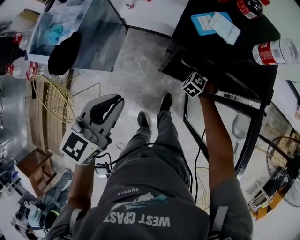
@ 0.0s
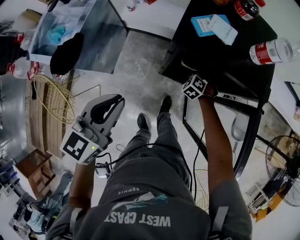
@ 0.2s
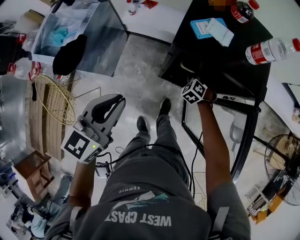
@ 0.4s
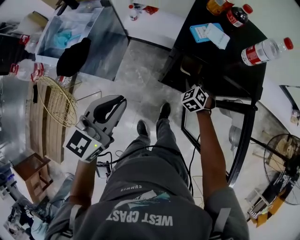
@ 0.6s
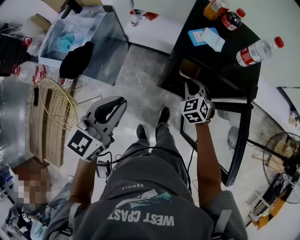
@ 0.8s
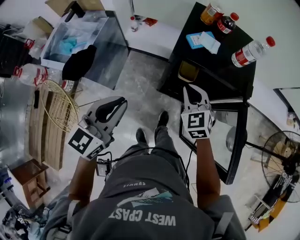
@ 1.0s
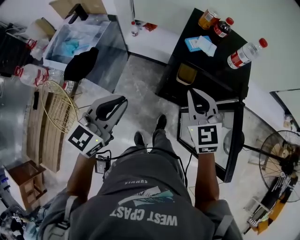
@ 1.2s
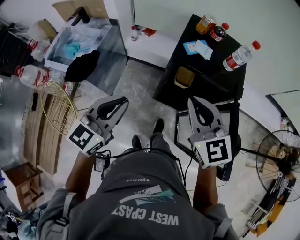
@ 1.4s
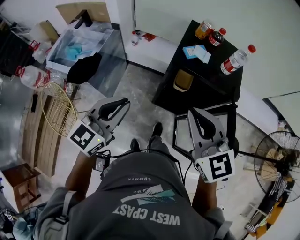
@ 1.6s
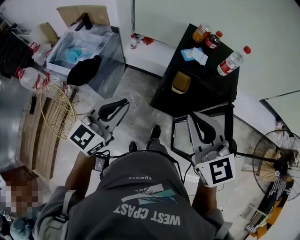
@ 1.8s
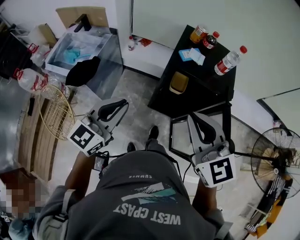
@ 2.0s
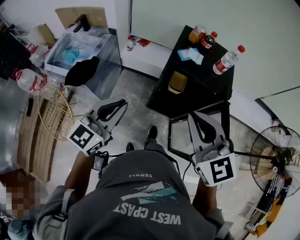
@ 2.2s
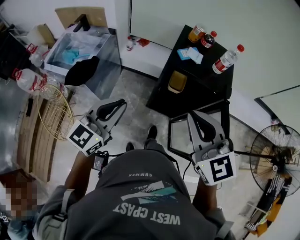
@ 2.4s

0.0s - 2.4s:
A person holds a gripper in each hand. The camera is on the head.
0.0s - 1.2s: The right gripper moves upward, roughly 40 cm, and tilts its fingers some 40 degrees upward. Meanwhile the left gripper goes about 10 cm upward.
1.2s - 2.4s: The right gripper travels upward and backward by approximately 20 cm, while the left gripper changes place by approximately 5 cm.

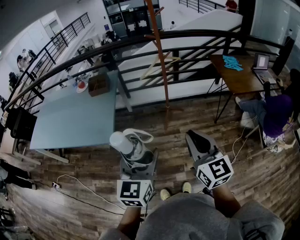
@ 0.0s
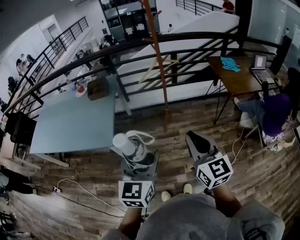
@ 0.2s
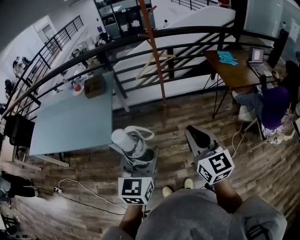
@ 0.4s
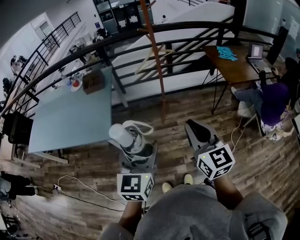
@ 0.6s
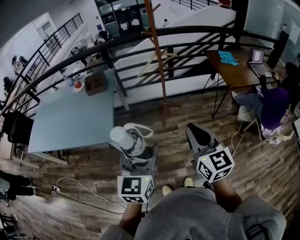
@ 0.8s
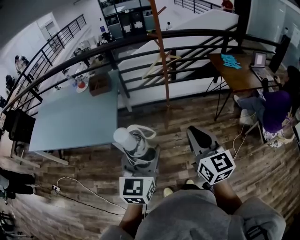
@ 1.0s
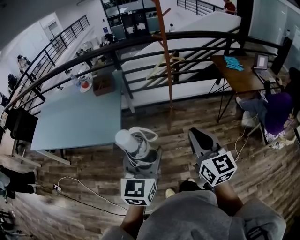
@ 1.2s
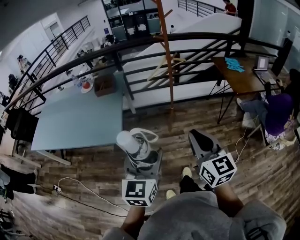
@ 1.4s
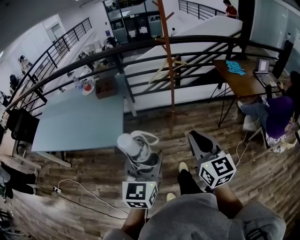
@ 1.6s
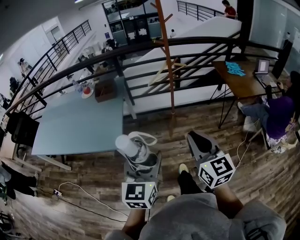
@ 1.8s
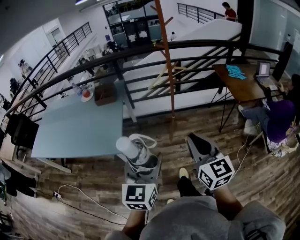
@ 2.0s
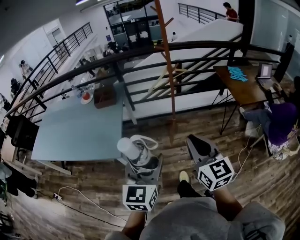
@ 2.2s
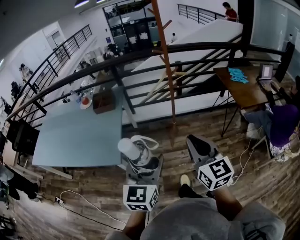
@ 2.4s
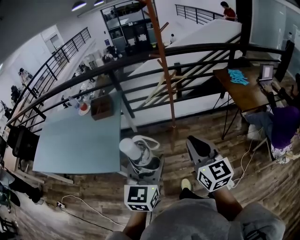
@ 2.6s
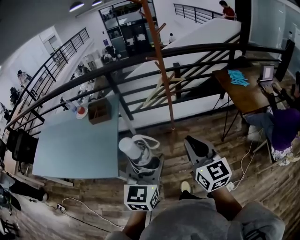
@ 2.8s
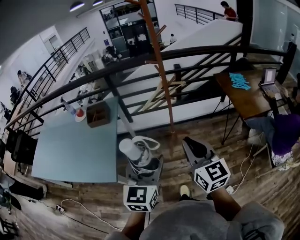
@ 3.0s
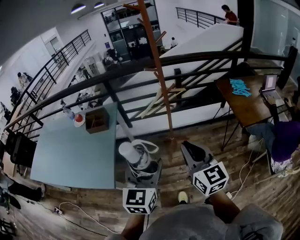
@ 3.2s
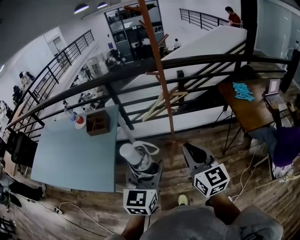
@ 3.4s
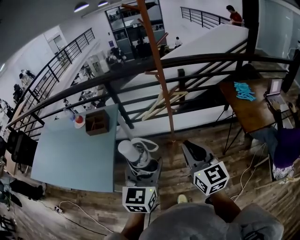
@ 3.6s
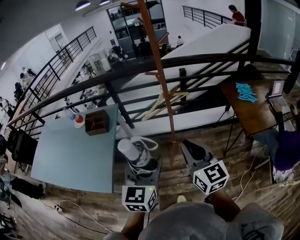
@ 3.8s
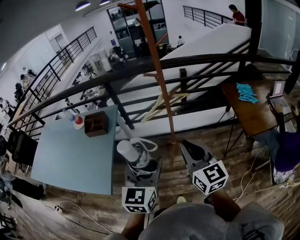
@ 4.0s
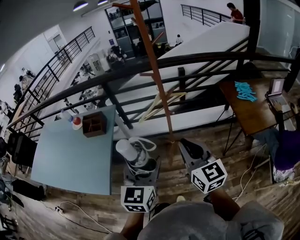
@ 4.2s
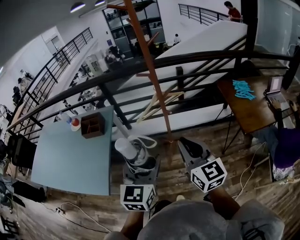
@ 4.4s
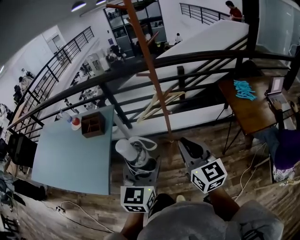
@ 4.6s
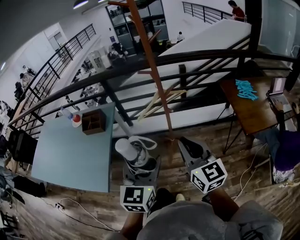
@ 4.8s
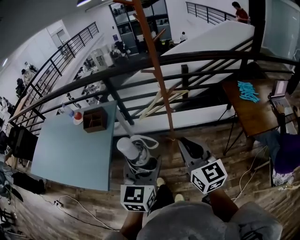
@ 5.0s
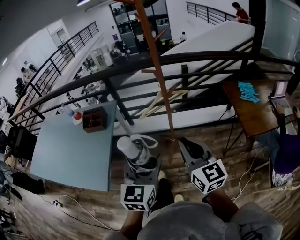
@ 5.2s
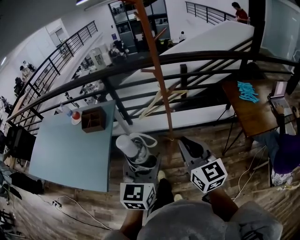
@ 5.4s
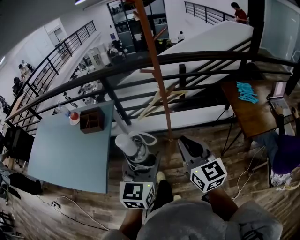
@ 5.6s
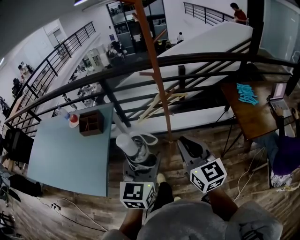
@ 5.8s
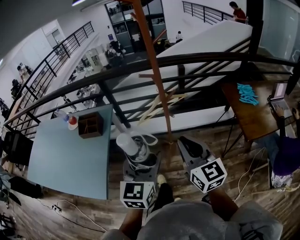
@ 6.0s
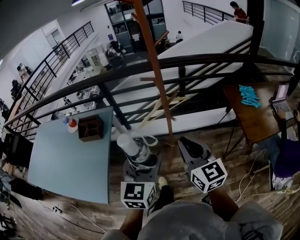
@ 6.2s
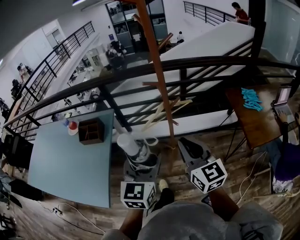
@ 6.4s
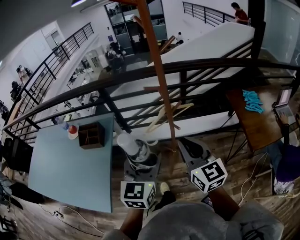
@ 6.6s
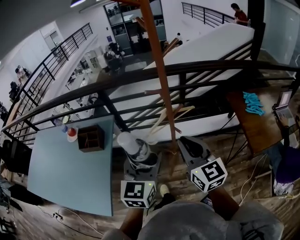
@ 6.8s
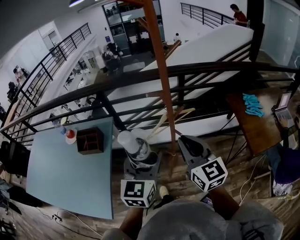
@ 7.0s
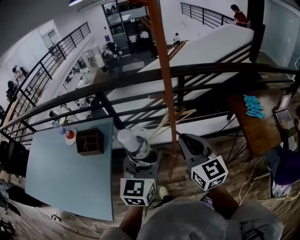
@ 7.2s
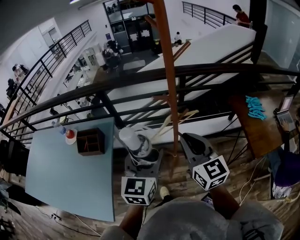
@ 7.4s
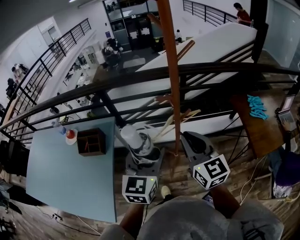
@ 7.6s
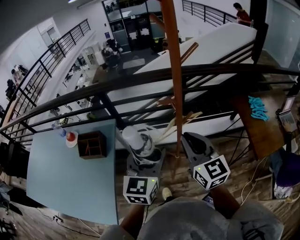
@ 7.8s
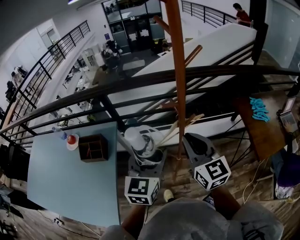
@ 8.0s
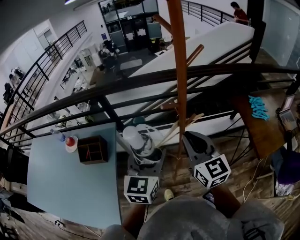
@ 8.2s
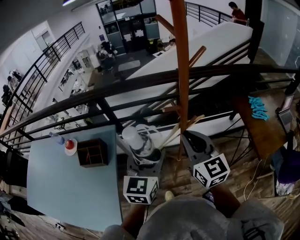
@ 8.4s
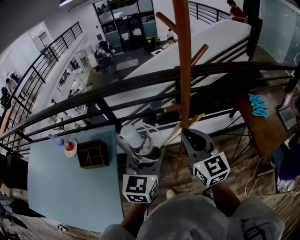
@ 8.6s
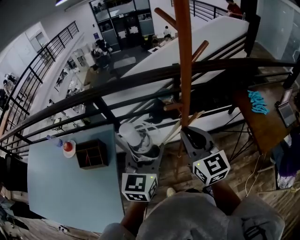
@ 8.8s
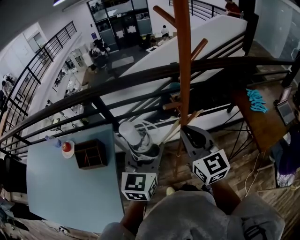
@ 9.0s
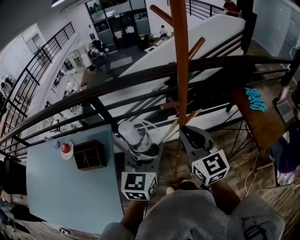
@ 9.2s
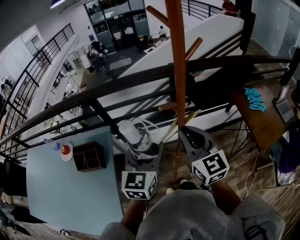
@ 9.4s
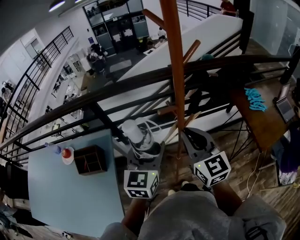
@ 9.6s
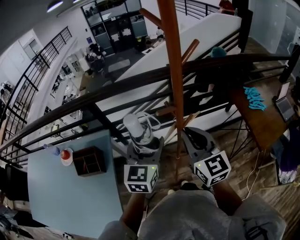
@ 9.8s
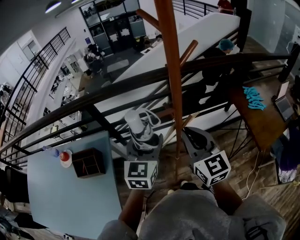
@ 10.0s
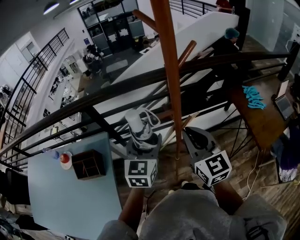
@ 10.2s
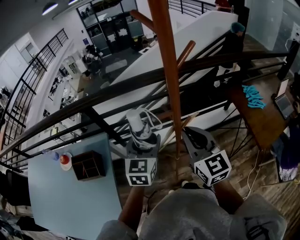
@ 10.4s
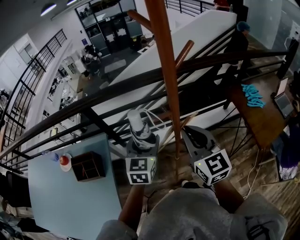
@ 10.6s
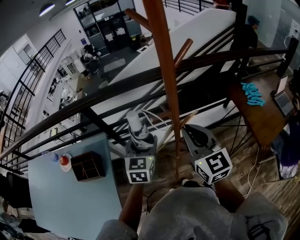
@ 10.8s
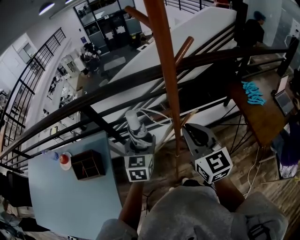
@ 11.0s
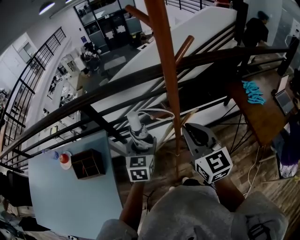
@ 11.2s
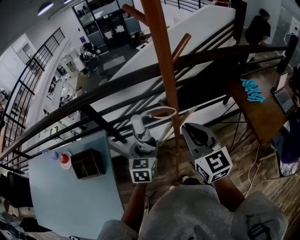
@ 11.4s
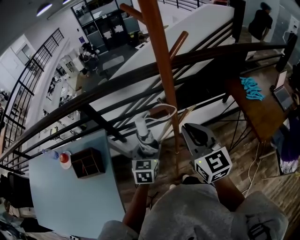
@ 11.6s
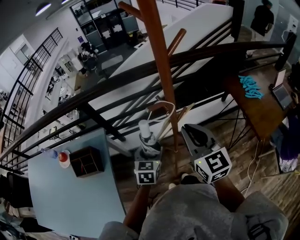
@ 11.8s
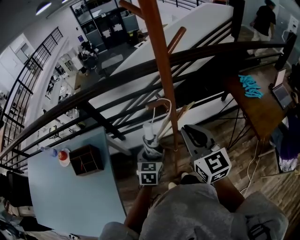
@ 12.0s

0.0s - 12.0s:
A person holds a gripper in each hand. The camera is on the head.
0.0s - 1.6s: The grippers both shift to the left by about 5 cm.
1.6s - 3.0s: Both grippers travel together forward, roughly 20 cm.
3.0s - 4.4s: The two grippers go about 15 cm forward and to the right.
4.4s - 6.0s: Both grippers travel together forward, about 5 cm.
6.0s - 7.6s: Both grippers travel together forward, approximately 20 cm.
7.6s - 9.0s: Both grippers move forward, approximately 10 cm.
9.0s - 10.4s: The right gripper shifts by some 5 cm. The left gripper moves forward, approximately 10 cm.
10.4s - 12.0s: The left gripper is displaced downward by about 15 cm.

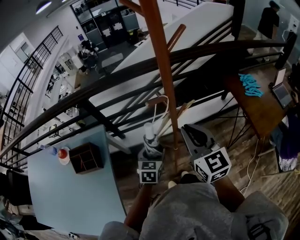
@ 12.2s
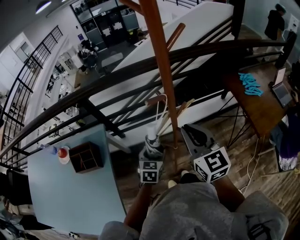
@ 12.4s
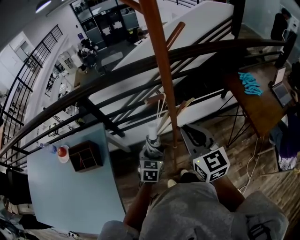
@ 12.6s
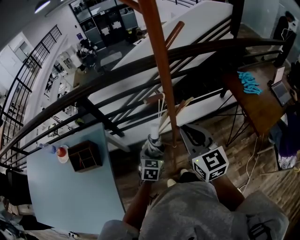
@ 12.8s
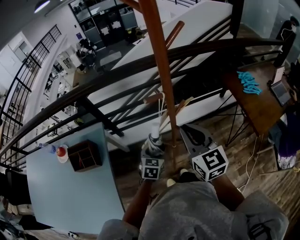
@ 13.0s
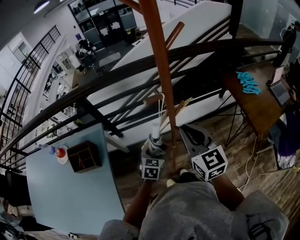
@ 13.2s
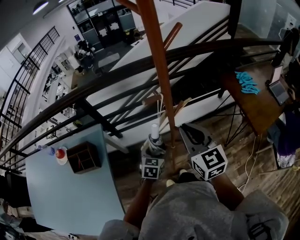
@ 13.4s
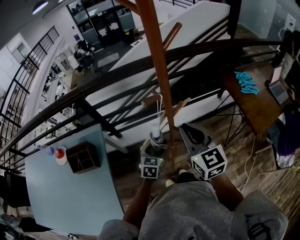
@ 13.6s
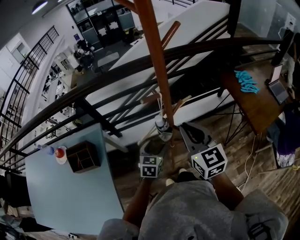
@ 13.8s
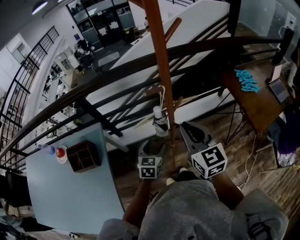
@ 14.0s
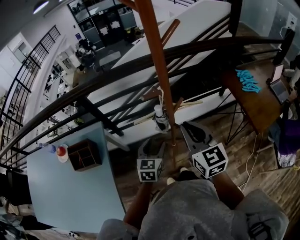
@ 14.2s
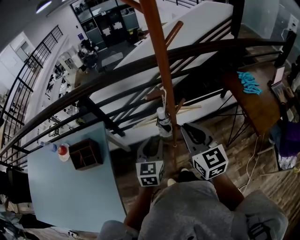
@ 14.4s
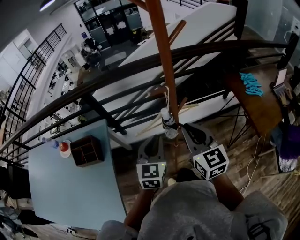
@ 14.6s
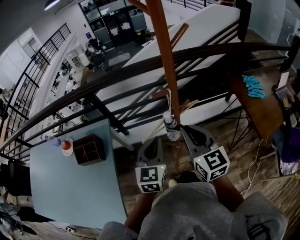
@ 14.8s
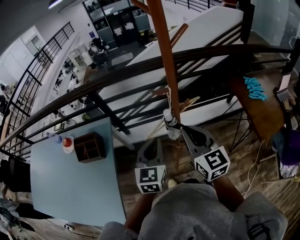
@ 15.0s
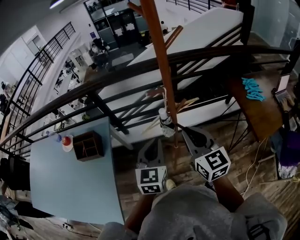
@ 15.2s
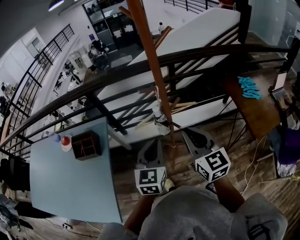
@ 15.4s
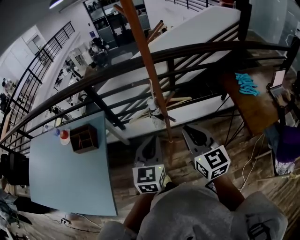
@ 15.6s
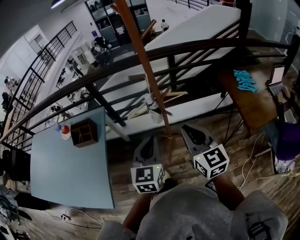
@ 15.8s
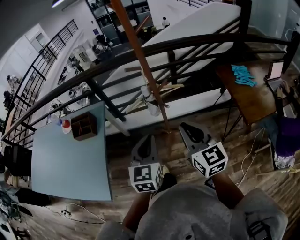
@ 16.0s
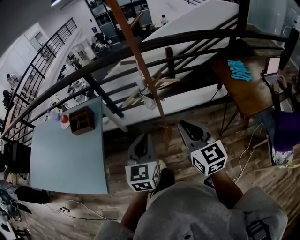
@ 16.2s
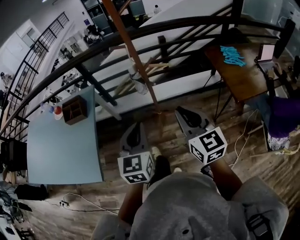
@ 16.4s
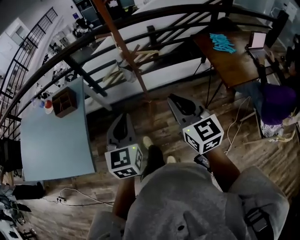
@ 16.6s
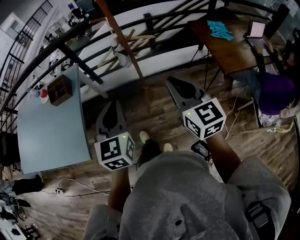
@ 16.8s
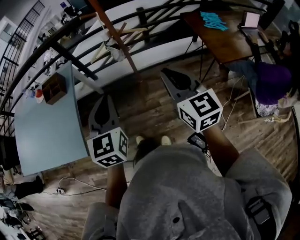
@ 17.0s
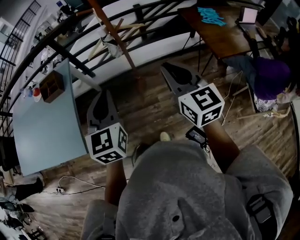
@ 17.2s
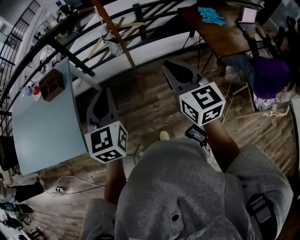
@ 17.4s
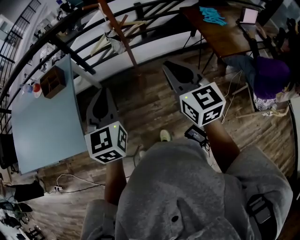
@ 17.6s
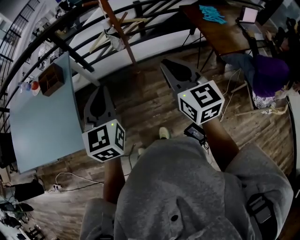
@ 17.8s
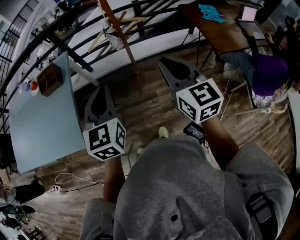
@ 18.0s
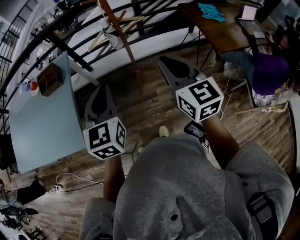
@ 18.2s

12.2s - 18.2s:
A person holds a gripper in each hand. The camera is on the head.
12.2s - 13.8s: The grippers make only small movements.
13.8s - 15.2s: The left gripper moves upward and backward, roughly 20 cm, turns by roughly 20 degrees, and closes up; the right gripper moves backward, approximately 5 cm.
15.2s - 16.6s: The left gripper is displaced backward by roughly 25 cm. The right gripper goes roughly 25 cm backward and to the right.
16.6s - 18.2s: The left gripper ends up roughly 5 cm from where it was.

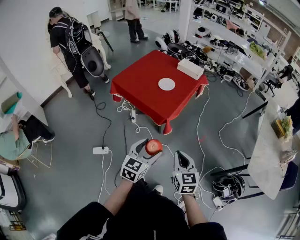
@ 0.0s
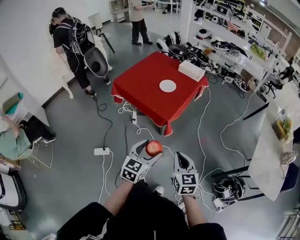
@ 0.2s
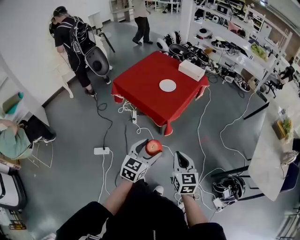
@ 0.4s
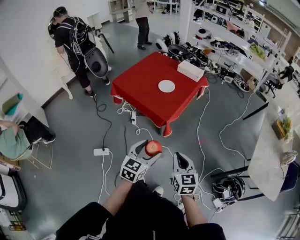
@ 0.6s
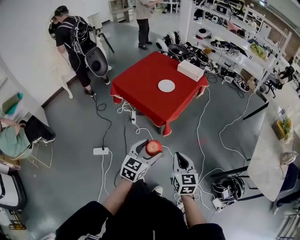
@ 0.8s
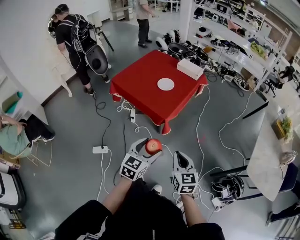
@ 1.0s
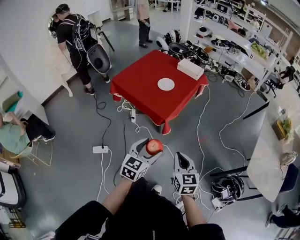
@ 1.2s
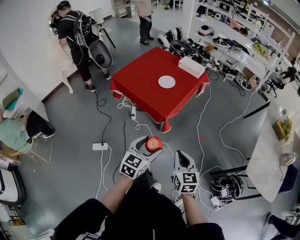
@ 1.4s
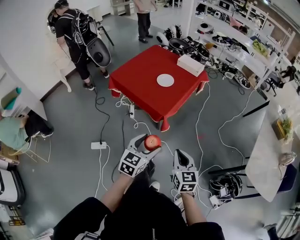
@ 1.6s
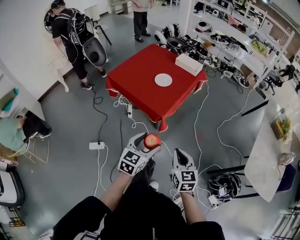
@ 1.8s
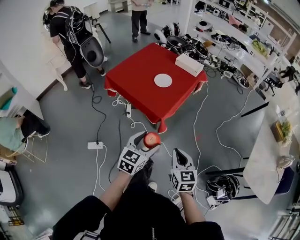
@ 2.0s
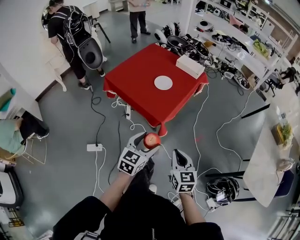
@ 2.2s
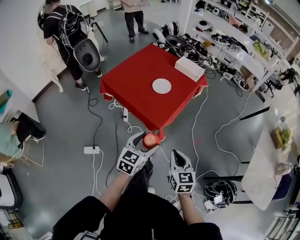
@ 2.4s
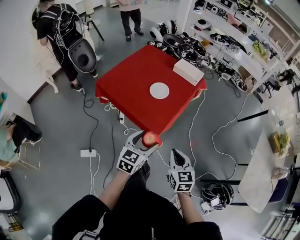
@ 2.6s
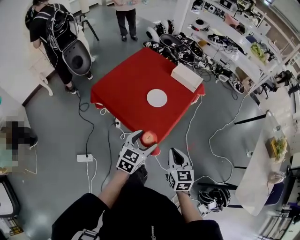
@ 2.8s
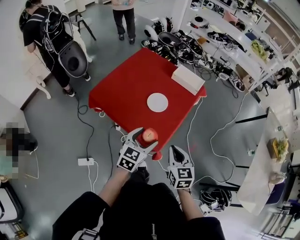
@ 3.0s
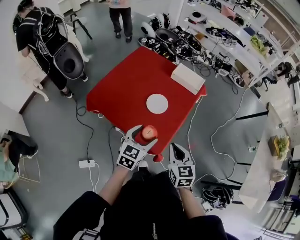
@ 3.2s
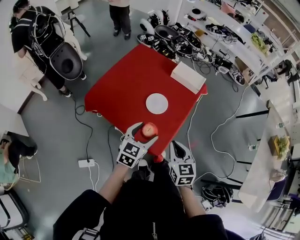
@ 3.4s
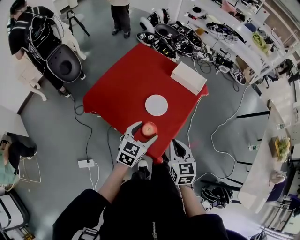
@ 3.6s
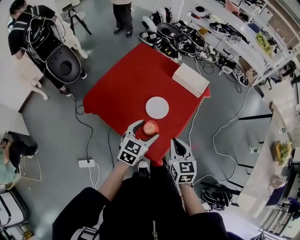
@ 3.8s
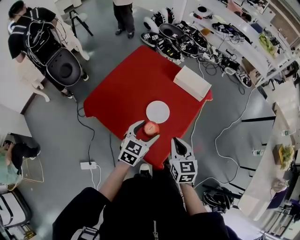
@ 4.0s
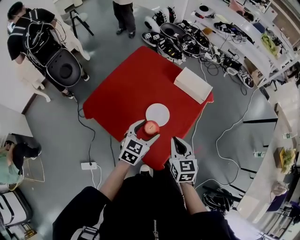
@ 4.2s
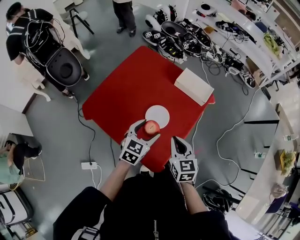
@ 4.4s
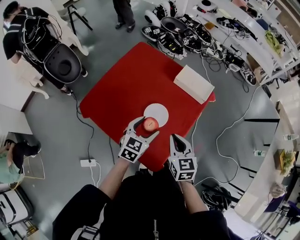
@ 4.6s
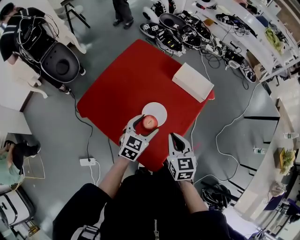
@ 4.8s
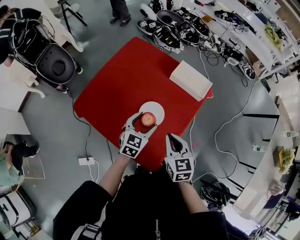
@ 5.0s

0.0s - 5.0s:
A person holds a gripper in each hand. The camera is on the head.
0.0s - 1.6s: There are only small adjustments of the grippers.
1.6s - 3.4s: Both grippers travel together forward, about 40 cm.
3.4s - 5.0s: The right gripper is displaced forward by about 15 cm. The left gripper goes about 20 cm forward and downward.
